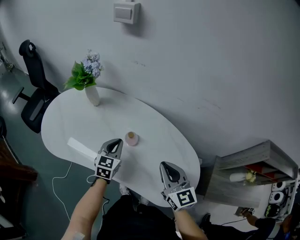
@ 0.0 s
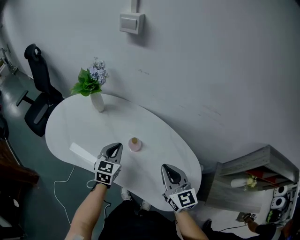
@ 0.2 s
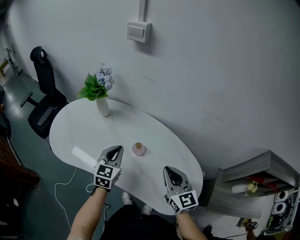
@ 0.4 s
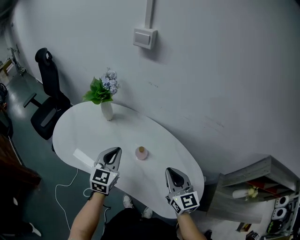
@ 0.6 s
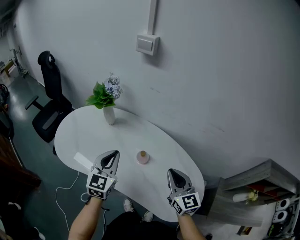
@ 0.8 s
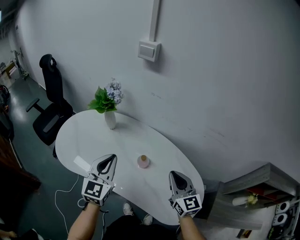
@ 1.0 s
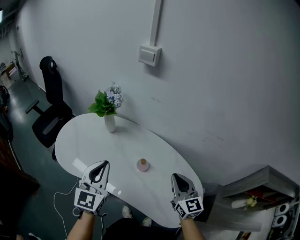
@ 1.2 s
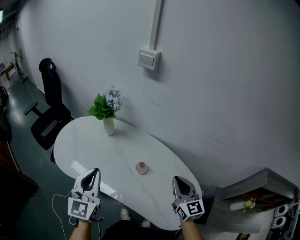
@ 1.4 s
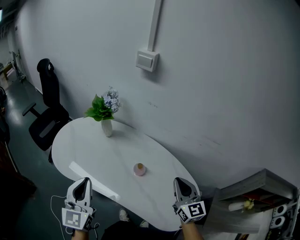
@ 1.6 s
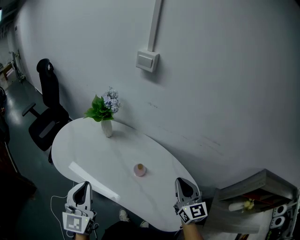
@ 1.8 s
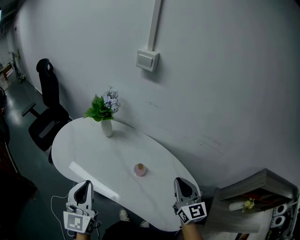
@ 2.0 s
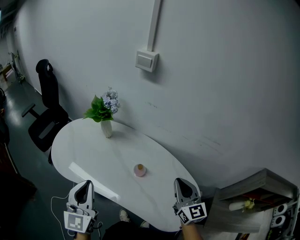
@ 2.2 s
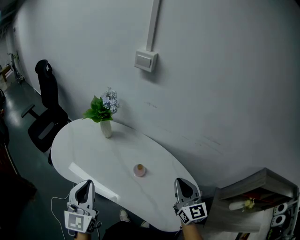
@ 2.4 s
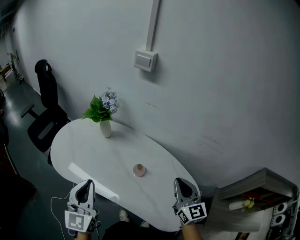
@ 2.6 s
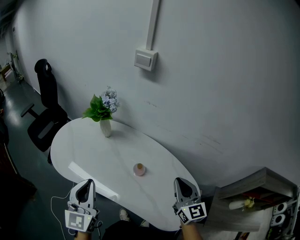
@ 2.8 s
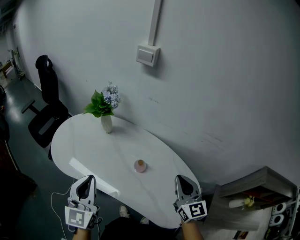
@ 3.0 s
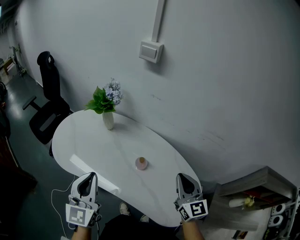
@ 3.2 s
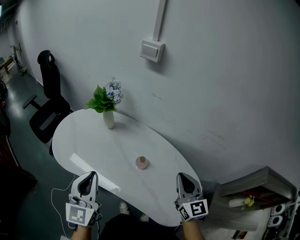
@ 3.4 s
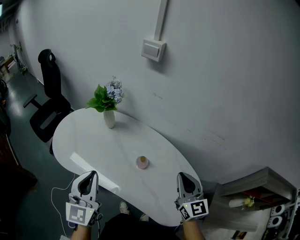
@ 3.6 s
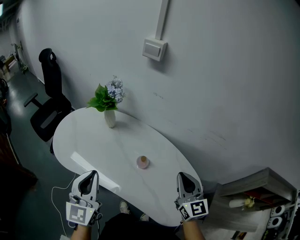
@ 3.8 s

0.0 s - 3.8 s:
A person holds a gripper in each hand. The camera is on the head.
0.0 s - 1.2 s: The left gripper goes approximately 25 cm upward and to the left, and turns by approximately 30 degrees, while the right gripper ends up about 5 cm from where it was.
1.2 s - 2.6 s: The left gripper moves about 5 cm.
2.6 s - 3.8 s: Both grippers stay put.

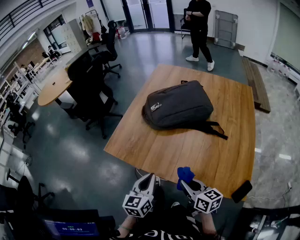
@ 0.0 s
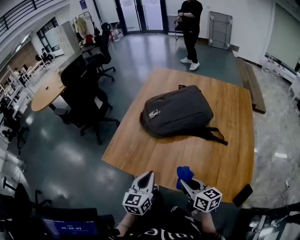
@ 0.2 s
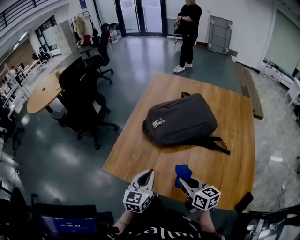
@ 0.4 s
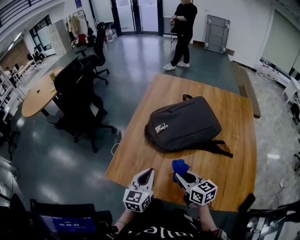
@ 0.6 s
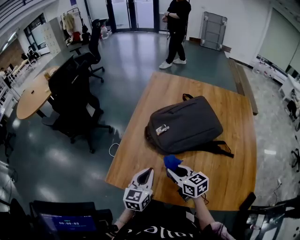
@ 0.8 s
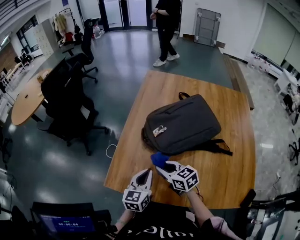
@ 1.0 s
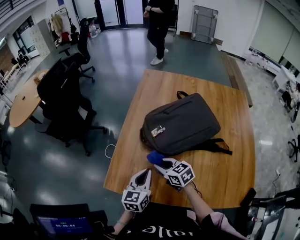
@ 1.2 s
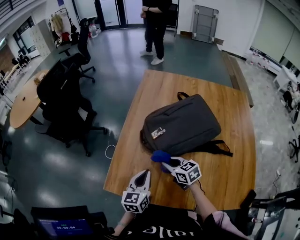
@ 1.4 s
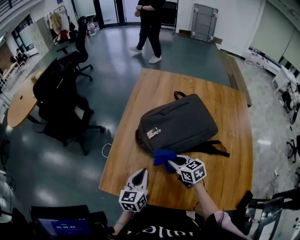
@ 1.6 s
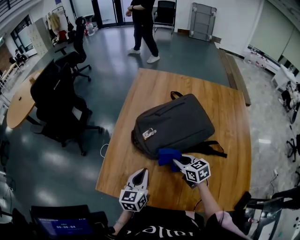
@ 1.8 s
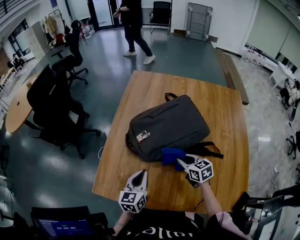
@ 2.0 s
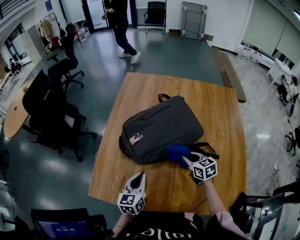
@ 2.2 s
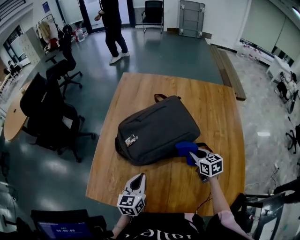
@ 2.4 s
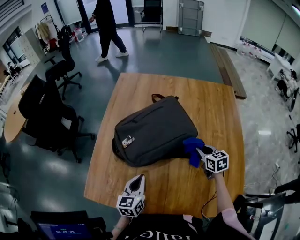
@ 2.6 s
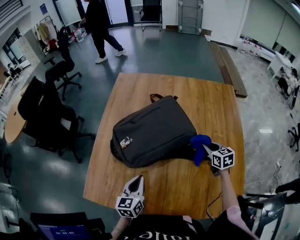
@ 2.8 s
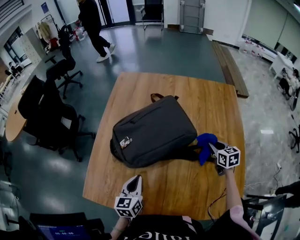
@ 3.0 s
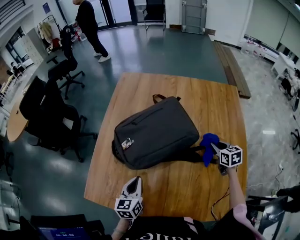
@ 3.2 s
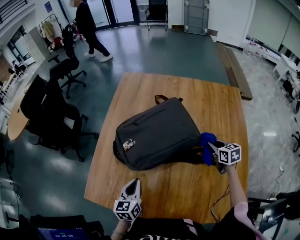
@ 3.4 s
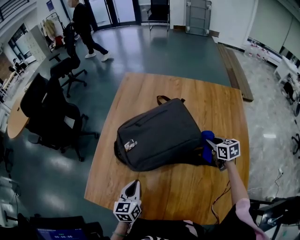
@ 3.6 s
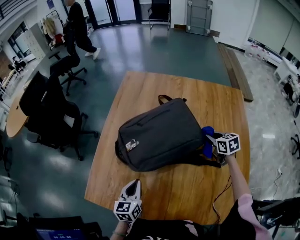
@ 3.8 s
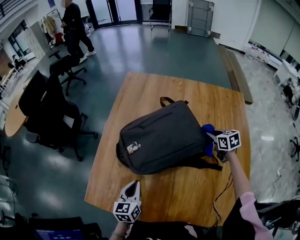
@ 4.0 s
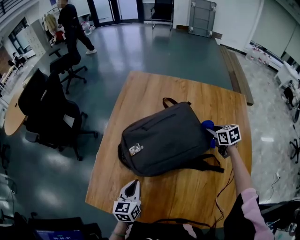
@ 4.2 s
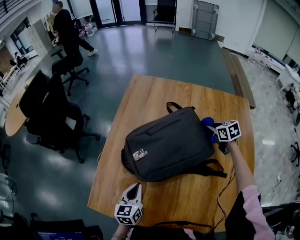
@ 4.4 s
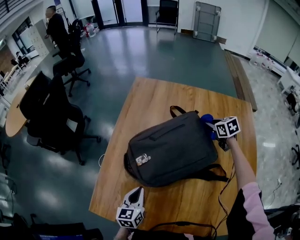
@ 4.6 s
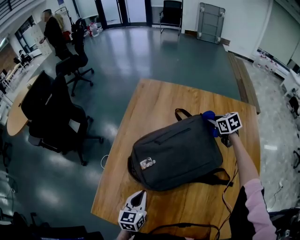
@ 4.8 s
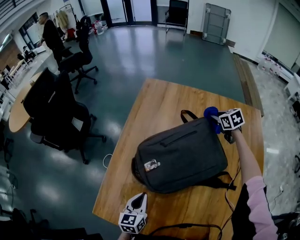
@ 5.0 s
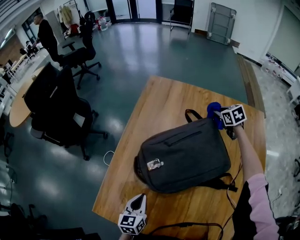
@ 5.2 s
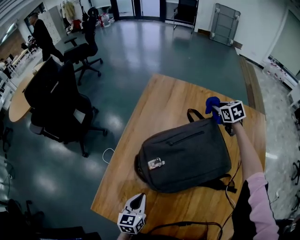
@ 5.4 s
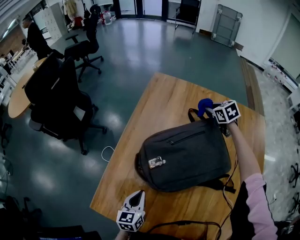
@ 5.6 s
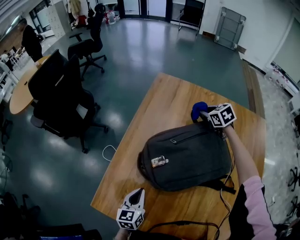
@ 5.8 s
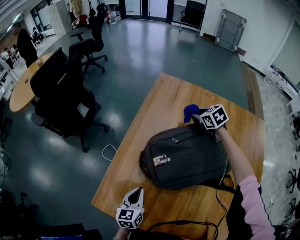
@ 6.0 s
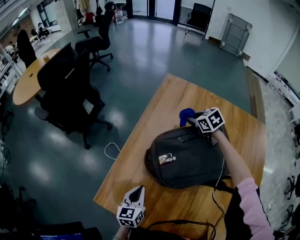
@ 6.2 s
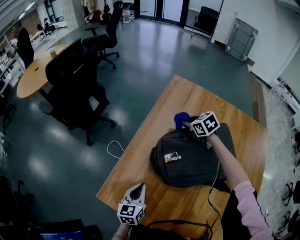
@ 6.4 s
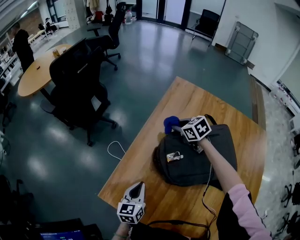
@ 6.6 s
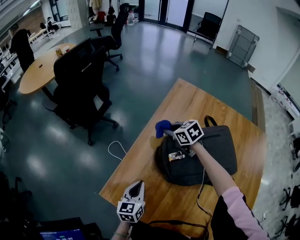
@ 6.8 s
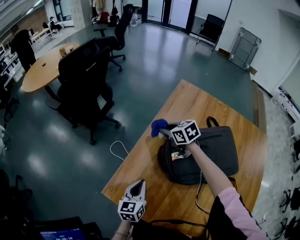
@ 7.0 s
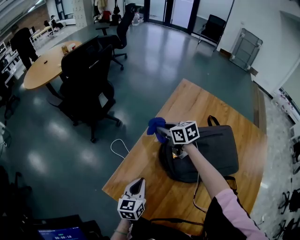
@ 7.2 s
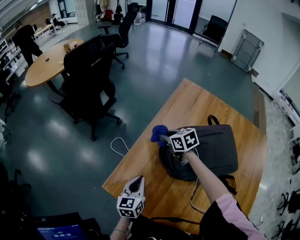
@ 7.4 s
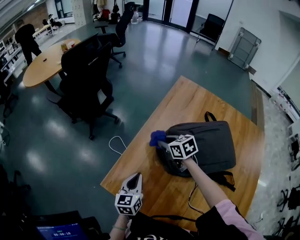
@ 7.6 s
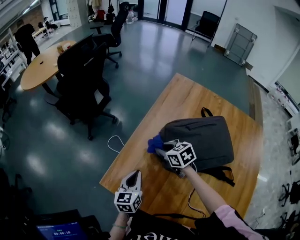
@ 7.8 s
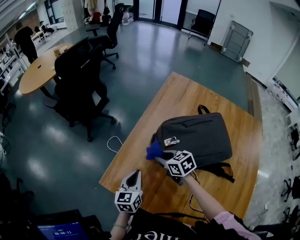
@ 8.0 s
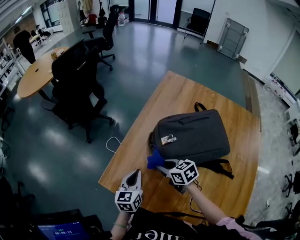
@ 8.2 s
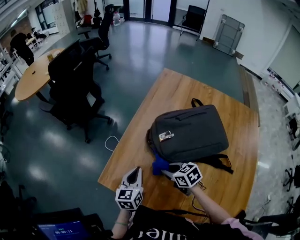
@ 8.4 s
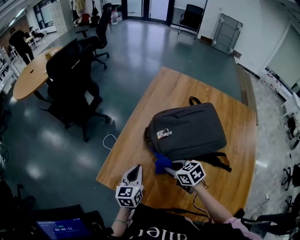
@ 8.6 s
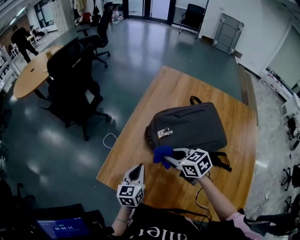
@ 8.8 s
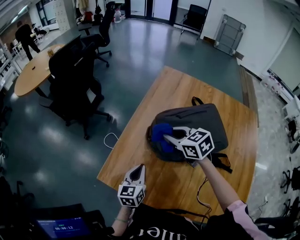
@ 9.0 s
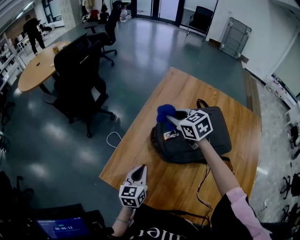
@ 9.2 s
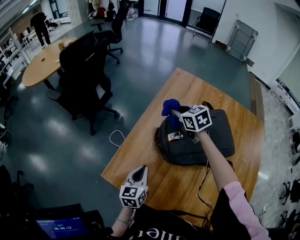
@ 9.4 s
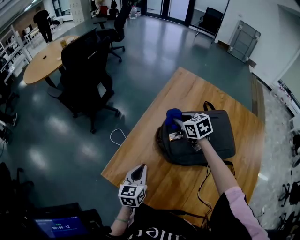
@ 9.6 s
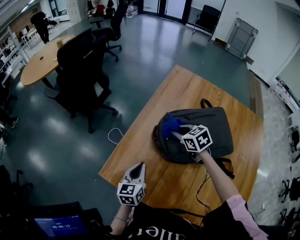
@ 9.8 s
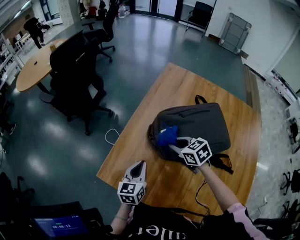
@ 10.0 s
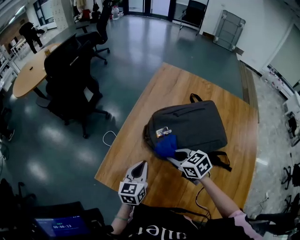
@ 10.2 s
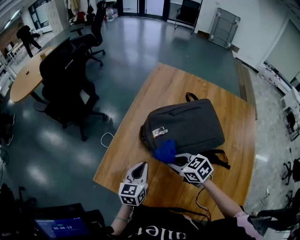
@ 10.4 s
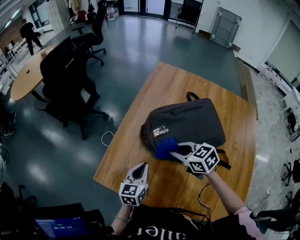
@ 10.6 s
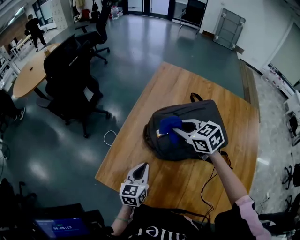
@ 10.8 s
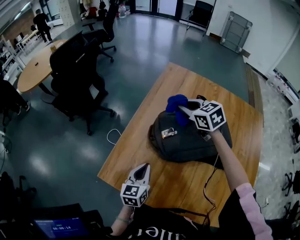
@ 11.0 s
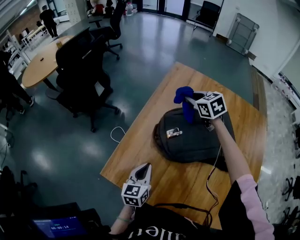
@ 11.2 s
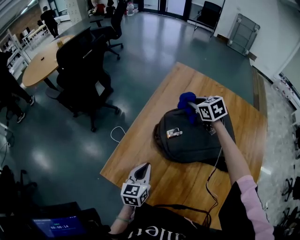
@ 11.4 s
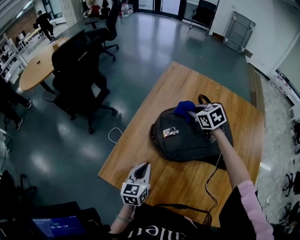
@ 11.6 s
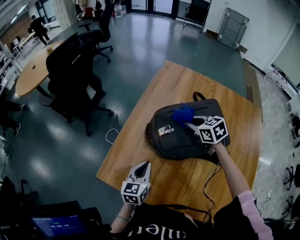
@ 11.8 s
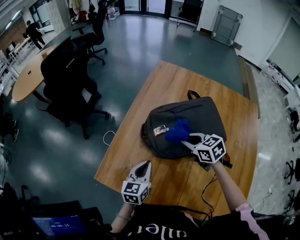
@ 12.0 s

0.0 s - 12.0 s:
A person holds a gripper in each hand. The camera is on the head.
0.0 s - 1.6 s: The two grippers go about 30 cm forward. The right gripper turns by approximately 20 degrees.
1.6 s - 3.0 s: The left gripper travels to the right by some 10 cm; the right gripper heads to the right, covering some 40 cm, and changes its angle by about 30 degrees.
3.0 s - 4.4 s: The right gripper heads forward, covering roughly 20 cm. Meanwhile the left gripper shifts about 5 cm to the left.
4.4 s - 6.0 s: The right gripper goes about 25 cm to the left and forward, and turns by some 20 degrees; the left gripper is displaced to the left by roughly 5 cm.
6.0 s - 7.6 s: The left gripper is displaced to the left by roughly 10 cm. Meanwhile the right gripper goes about 30 cm to the left, and changes its angle by about 20 degrees.
7.6 s - 9.0 s: The right gripper is displaced upward and backward by approximately 15 cm. The left gripper shifts by about 5 cm.
9.0 s - 10.4 s: The right gripper heads backward and downward, covering roughly 15 cm.
10.4 s - 12.0 s: The right gripper travels to the right by some 5 cm, and reaches about 30 cm forward, then returns.

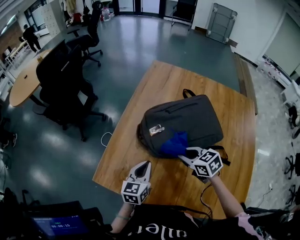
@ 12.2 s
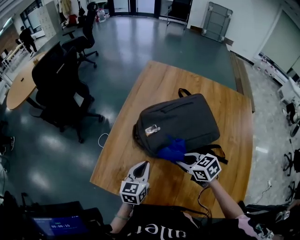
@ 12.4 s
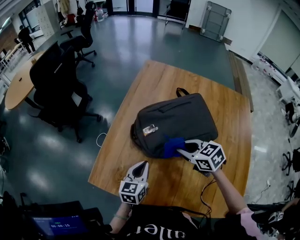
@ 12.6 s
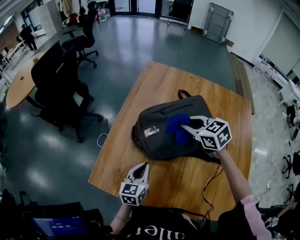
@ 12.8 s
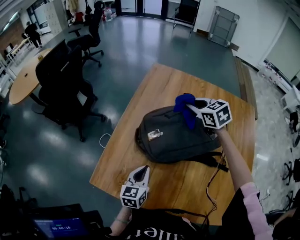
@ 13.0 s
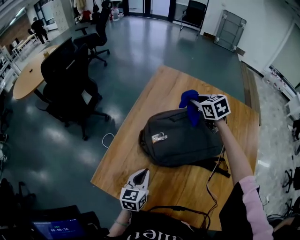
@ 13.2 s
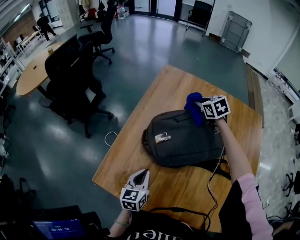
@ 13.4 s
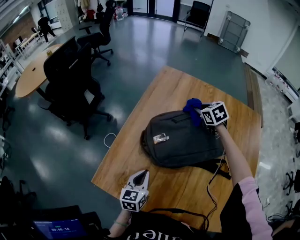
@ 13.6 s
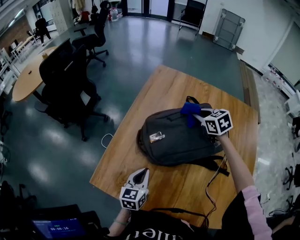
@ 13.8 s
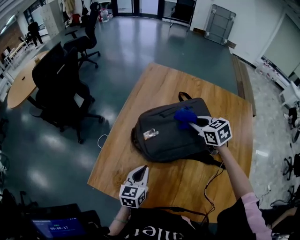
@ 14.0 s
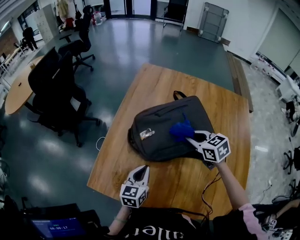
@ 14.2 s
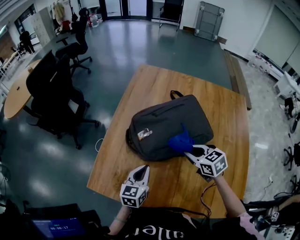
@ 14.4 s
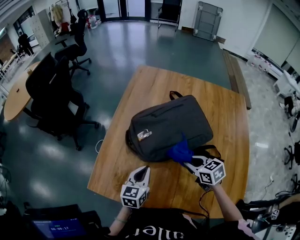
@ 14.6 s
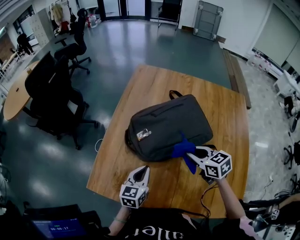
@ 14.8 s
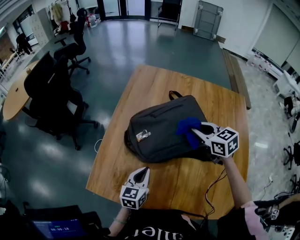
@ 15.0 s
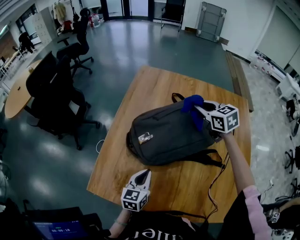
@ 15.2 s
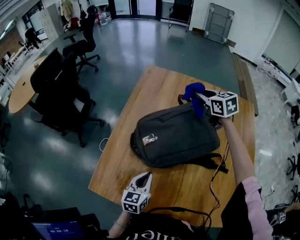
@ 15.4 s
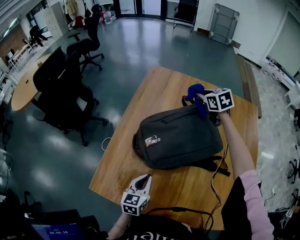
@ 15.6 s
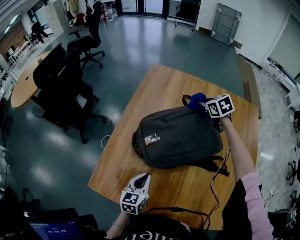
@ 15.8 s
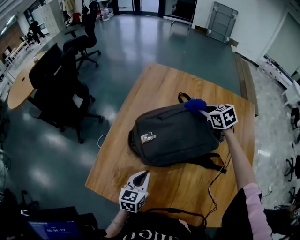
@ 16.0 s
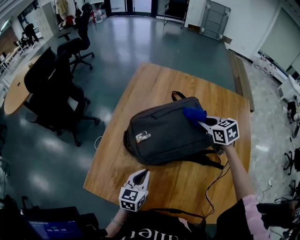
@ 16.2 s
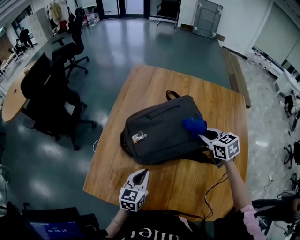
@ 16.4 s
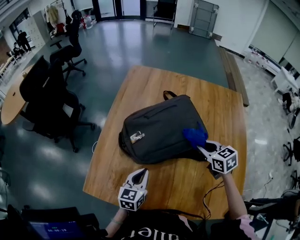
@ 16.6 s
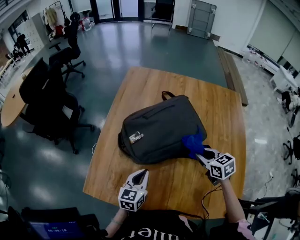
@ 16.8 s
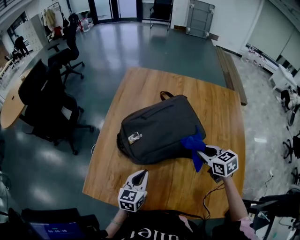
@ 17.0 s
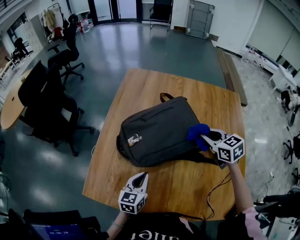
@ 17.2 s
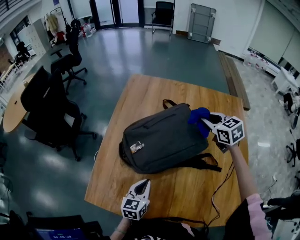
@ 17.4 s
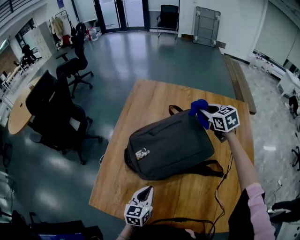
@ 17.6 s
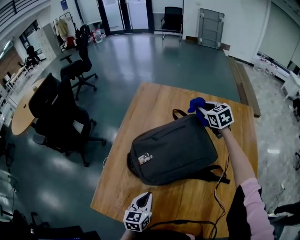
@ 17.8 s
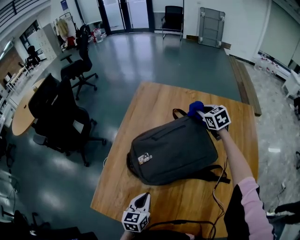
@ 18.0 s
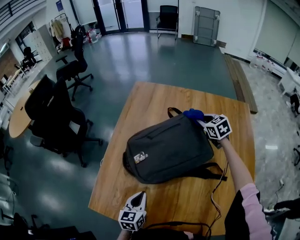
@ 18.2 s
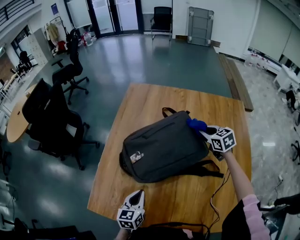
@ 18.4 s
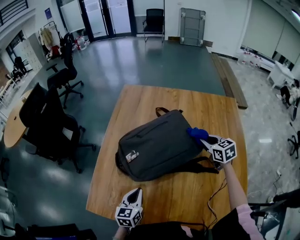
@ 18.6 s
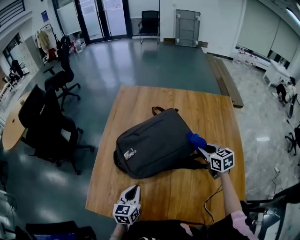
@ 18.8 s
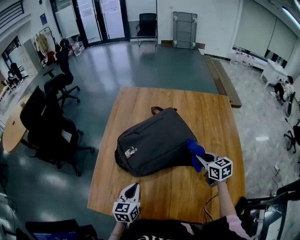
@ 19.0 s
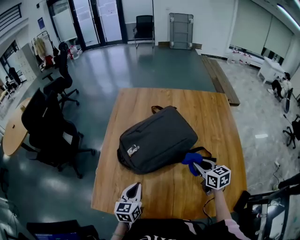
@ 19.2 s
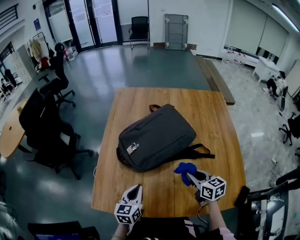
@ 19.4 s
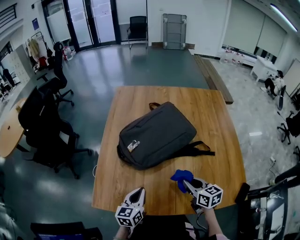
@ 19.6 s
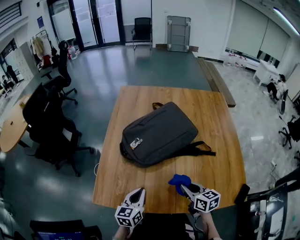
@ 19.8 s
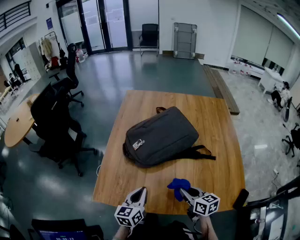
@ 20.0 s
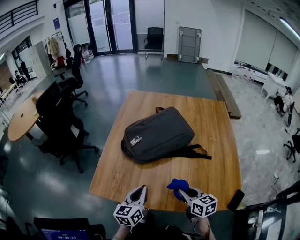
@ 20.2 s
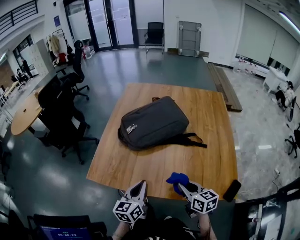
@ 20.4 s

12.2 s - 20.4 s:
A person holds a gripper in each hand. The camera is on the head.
12.2 s - 13.8 s: The right gripper heads forward and to the right, covering approximately 25 cm.
13.8 s - 15.4 s: The right gripper heads upward and to the right, covering about 10 cm, and moves some 25 cm backward and comes back.
15.4 s - 17.2 s: The right gripper moves forward and backward over some 30 cm, changing direction 2 times.
17.2 s - 18.8 s: The right gripper goes approximately 10 cm downward and to the right, and travels forward and back again, some 25 cm each way.
18.8 s - 20.4 s: The left gripper moves backward and upward, some 20 cm, while the right gripper is displaced backward by some 35 cm.
